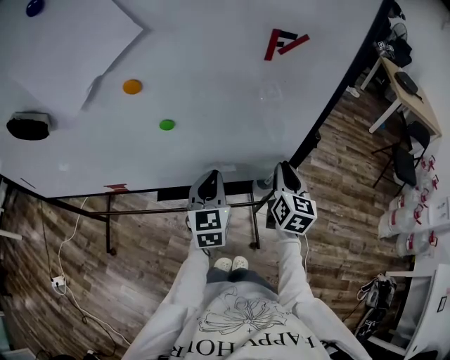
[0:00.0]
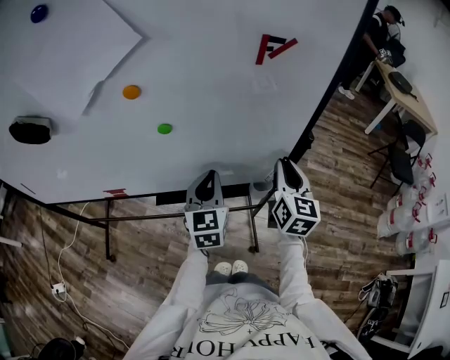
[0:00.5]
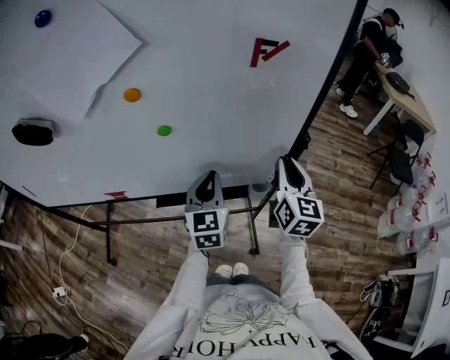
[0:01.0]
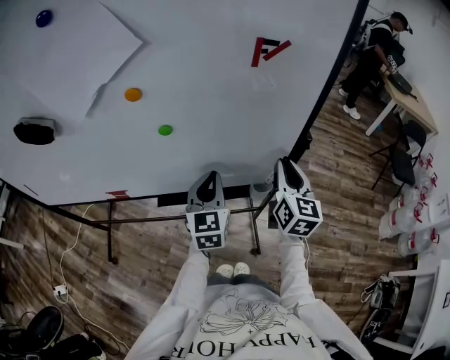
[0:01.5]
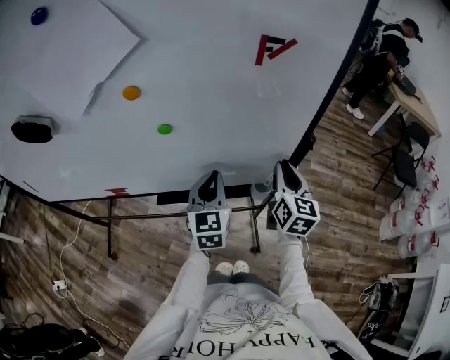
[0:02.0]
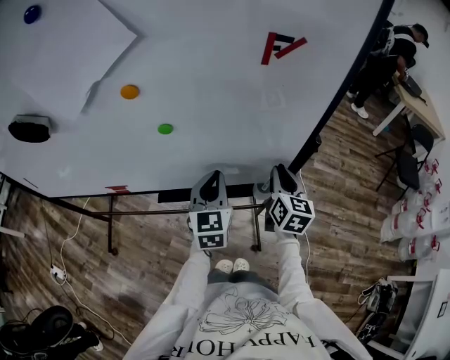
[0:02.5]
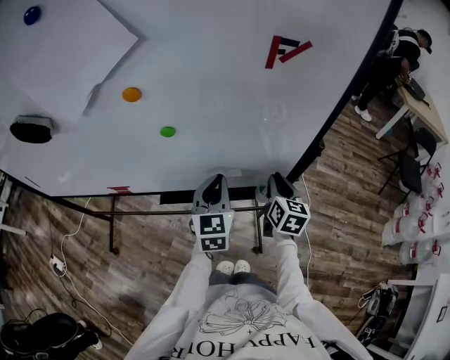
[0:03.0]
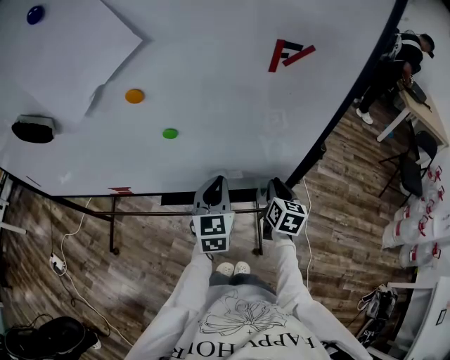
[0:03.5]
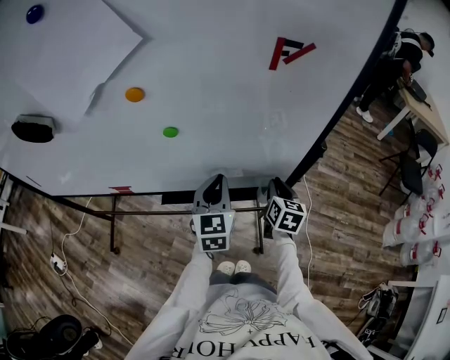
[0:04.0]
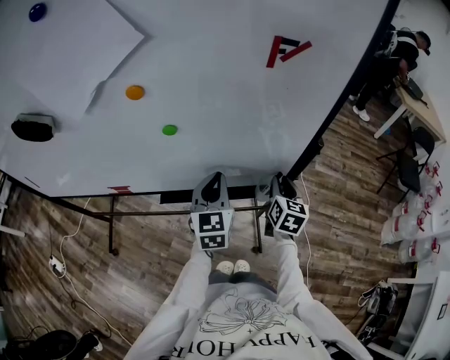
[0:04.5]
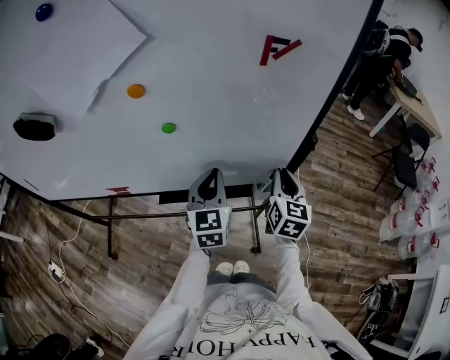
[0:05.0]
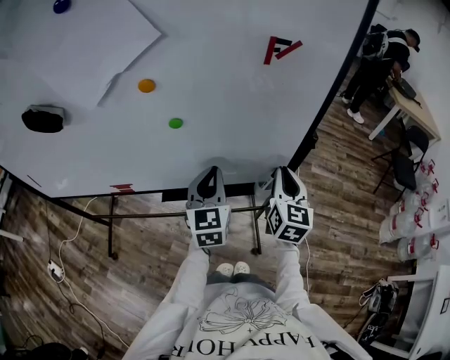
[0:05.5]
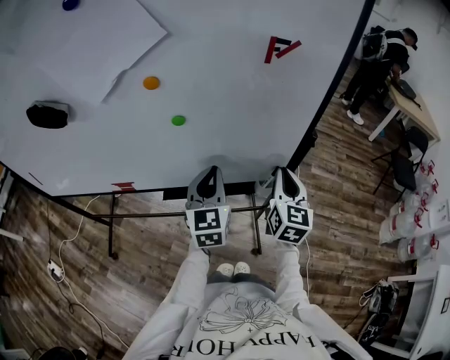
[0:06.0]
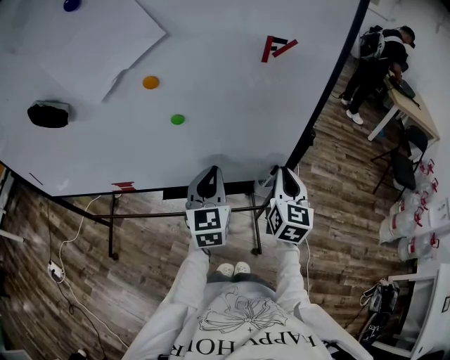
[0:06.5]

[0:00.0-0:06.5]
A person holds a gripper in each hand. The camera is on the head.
0:02.0 to 0:04.5: The right gripper travels downward by roughly 10 cm.
0:04.5 to 0:06.5: The right gripper moves upward and backward, some 15 cm. Meanwhile the left gripper shifts by roughly 5 cm.

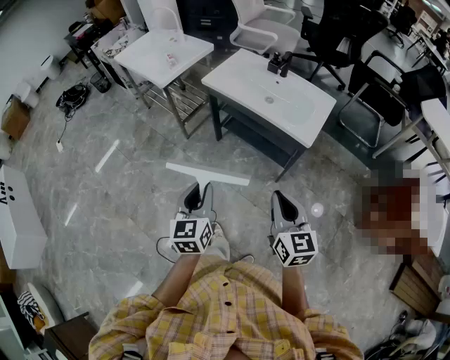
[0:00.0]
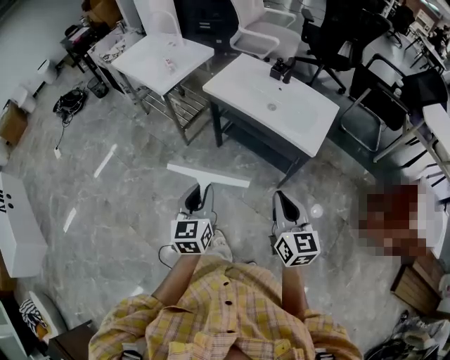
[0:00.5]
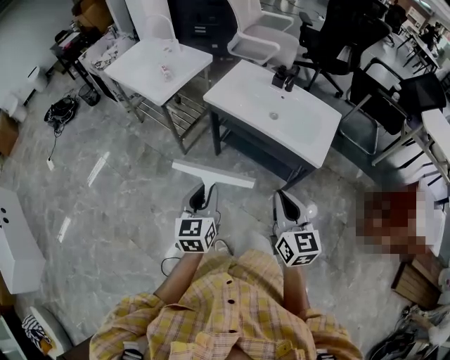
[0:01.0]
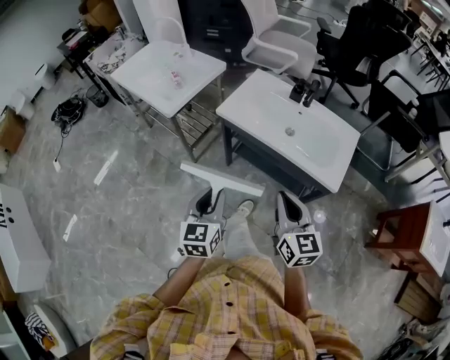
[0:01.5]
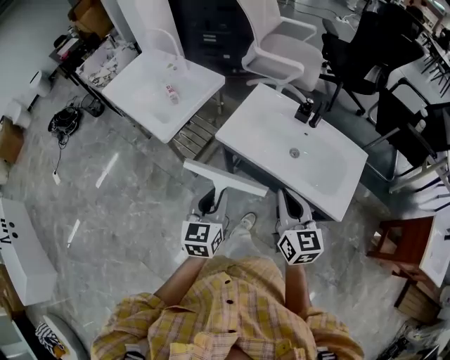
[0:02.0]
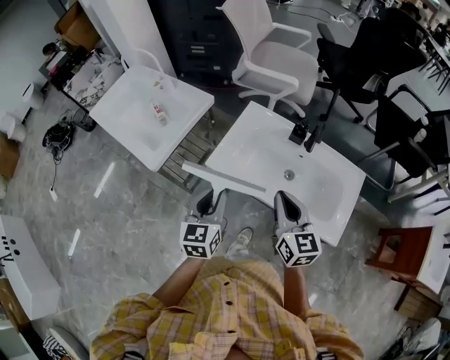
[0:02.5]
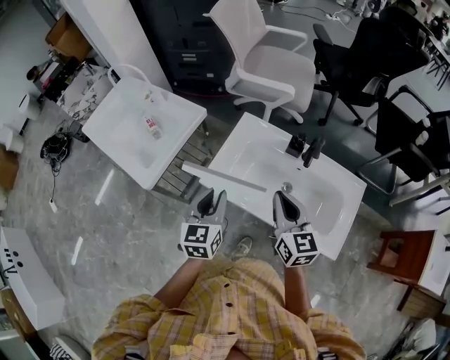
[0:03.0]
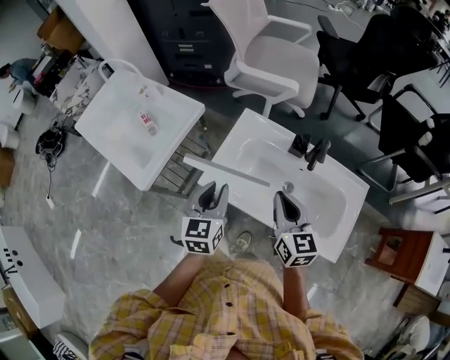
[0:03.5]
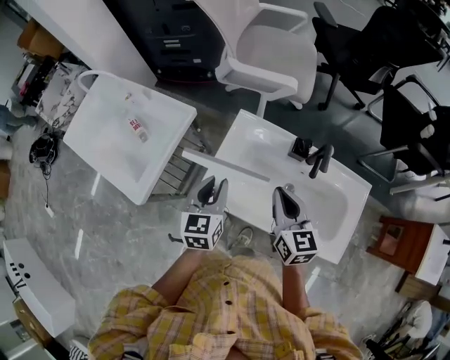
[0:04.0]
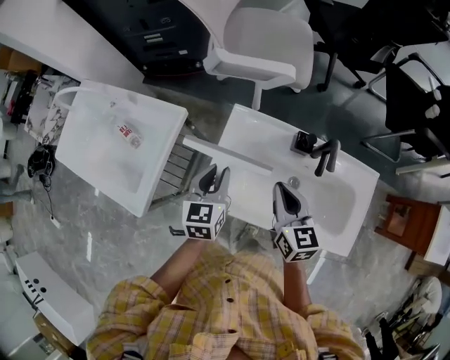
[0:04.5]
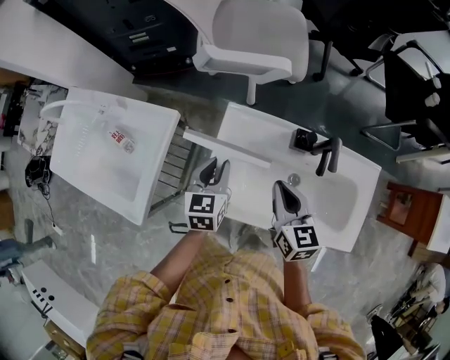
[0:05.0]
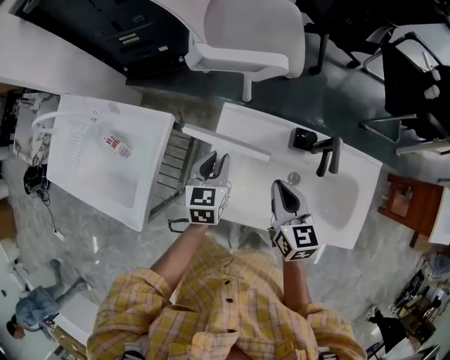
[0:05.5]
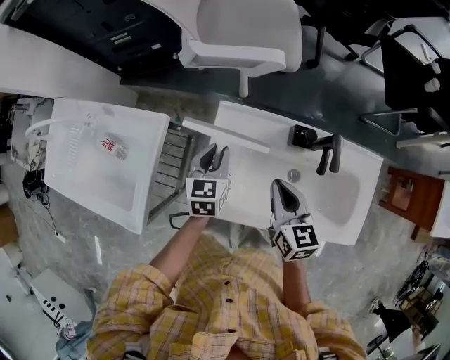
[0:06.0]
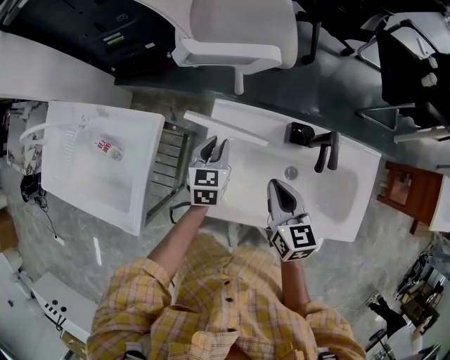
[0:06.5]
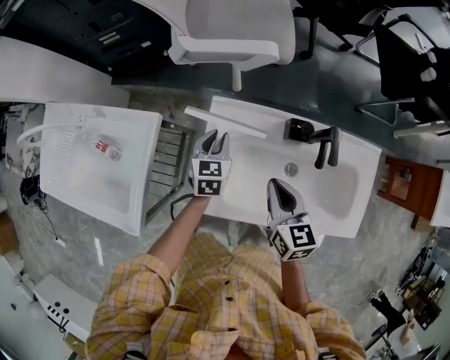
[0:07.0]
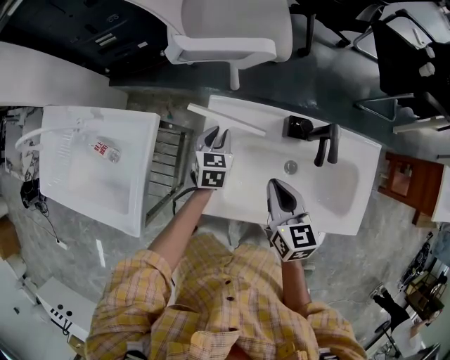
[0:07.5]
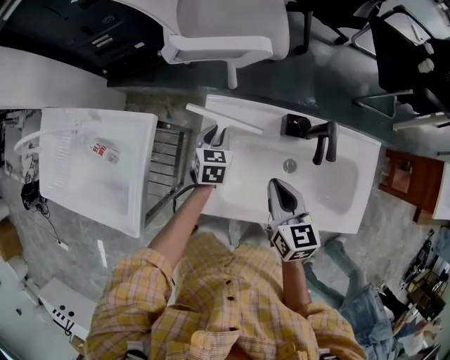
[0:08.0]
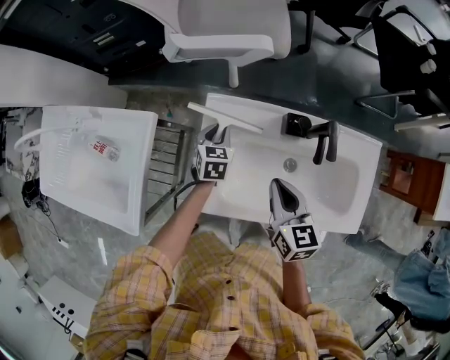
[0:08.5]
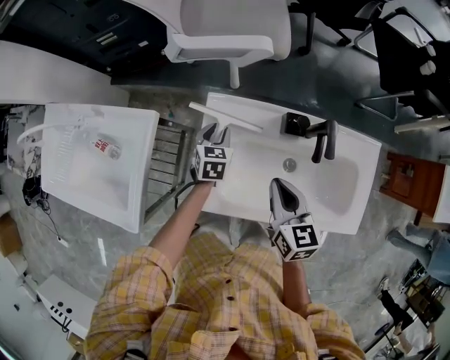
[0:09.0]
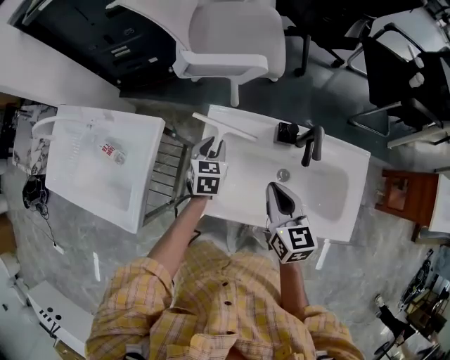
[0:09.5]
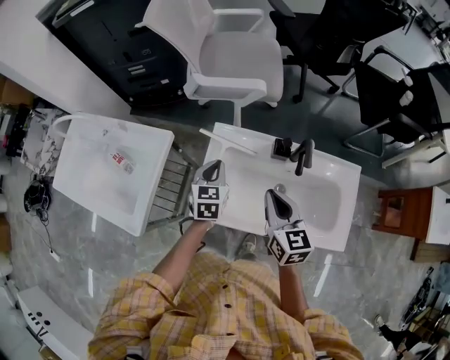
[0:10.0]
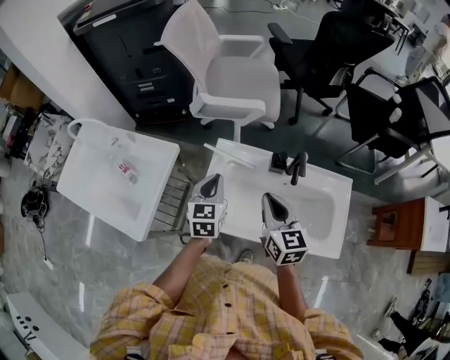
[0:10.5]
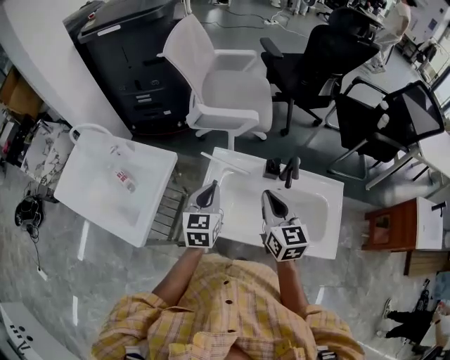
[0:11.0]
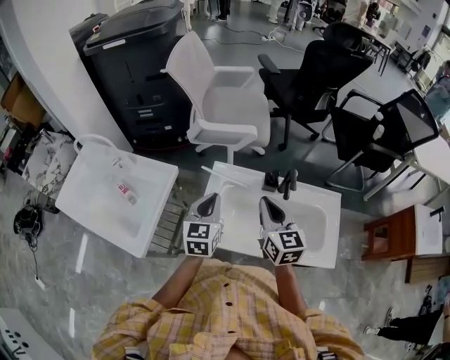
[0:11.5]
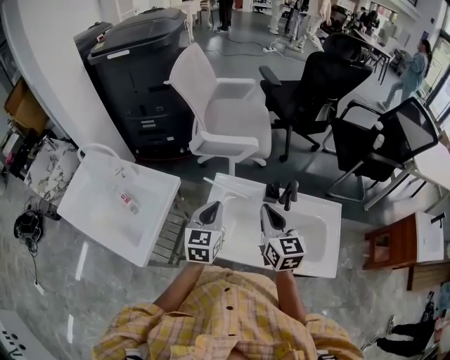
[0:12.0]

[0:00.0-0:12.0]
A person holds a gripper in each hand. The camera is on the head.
0:00.0 to 0:02.0: The grippers both shift forward by some 40 cm.
0:02.0 to 0:04.0: Both grippers travel together forward, roughly 30 cm.
0:04.0 to 0:06.0: The right gripper moves downward and forward, approximately 10 cm. The left gripper is displaced forward and downward by some 20 cm.
0:06.0 to 0:08.0: The left gripper goes about 10 cm downward.
0:08.0 to 0:10.0: The right gripper shifts some 10 cm upward. The left gripper shifts roughly 15 cm upward and backward.
0:10.0 to 0:12.0: The left gripper is displaced upward and backward by roughly 15 cm; the right gripper goes roughly 10 cm upward.

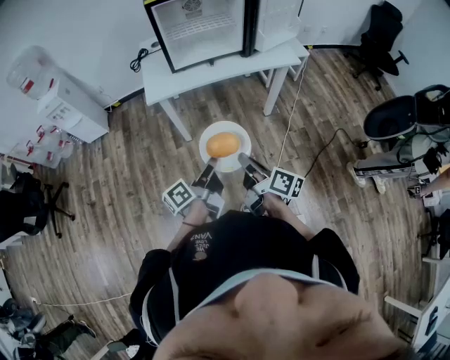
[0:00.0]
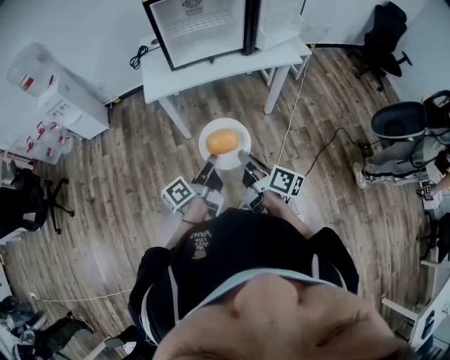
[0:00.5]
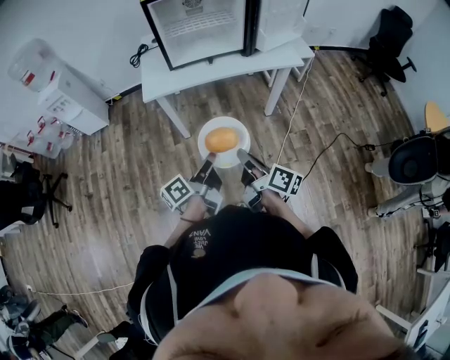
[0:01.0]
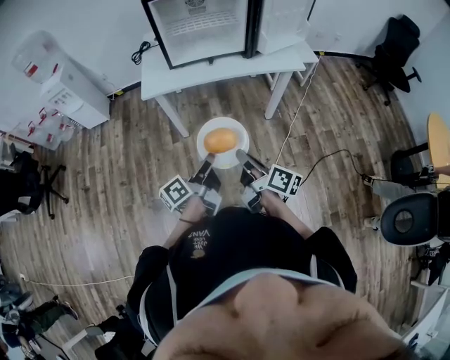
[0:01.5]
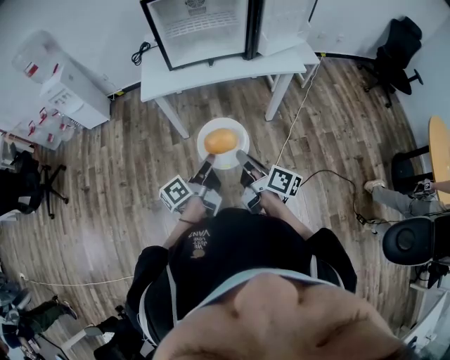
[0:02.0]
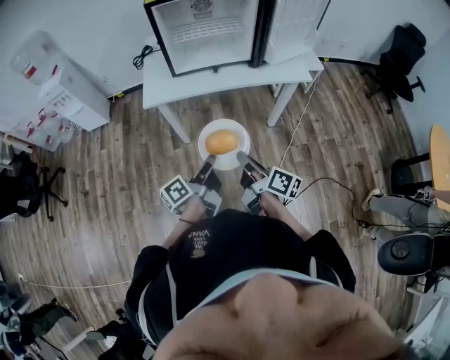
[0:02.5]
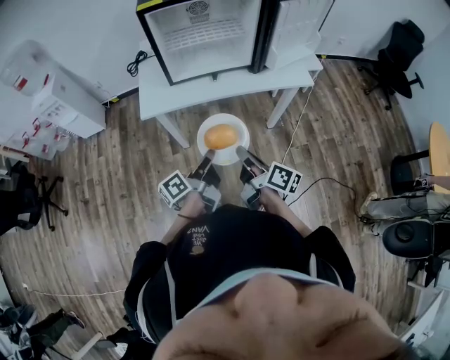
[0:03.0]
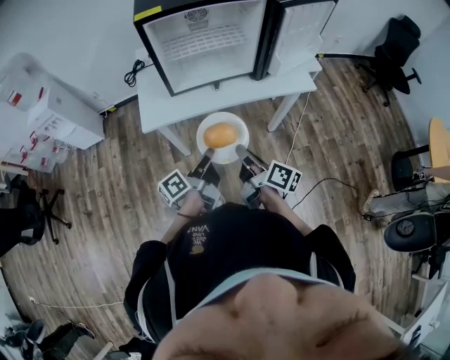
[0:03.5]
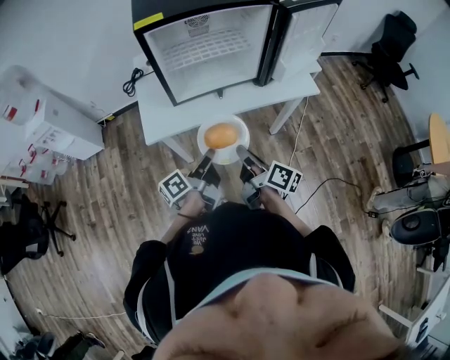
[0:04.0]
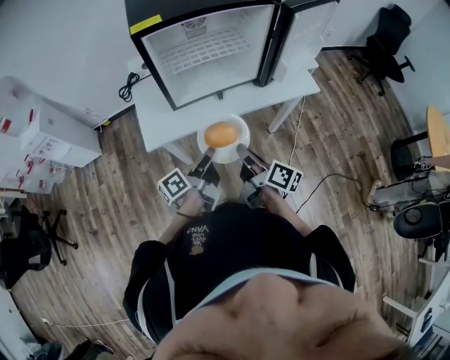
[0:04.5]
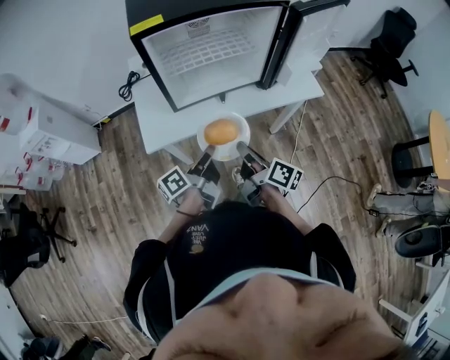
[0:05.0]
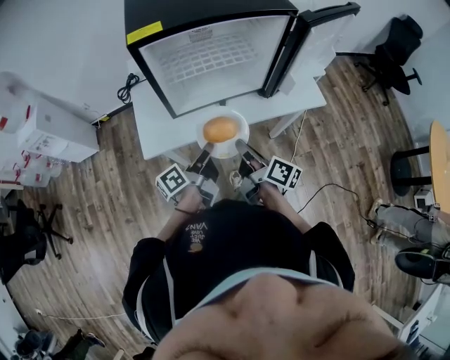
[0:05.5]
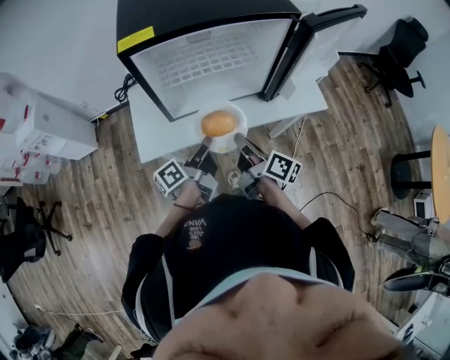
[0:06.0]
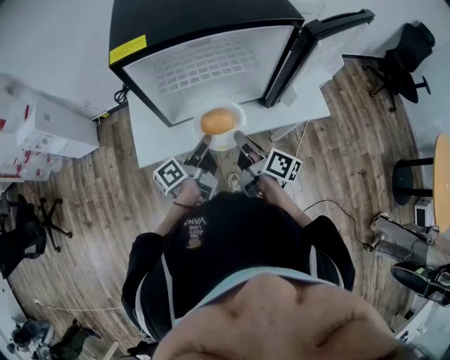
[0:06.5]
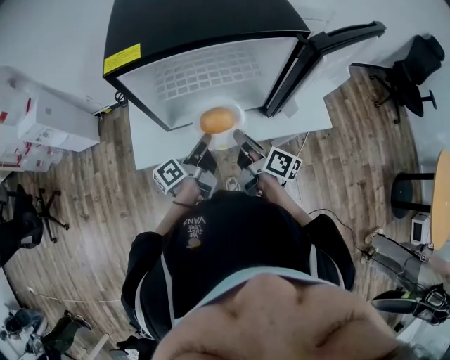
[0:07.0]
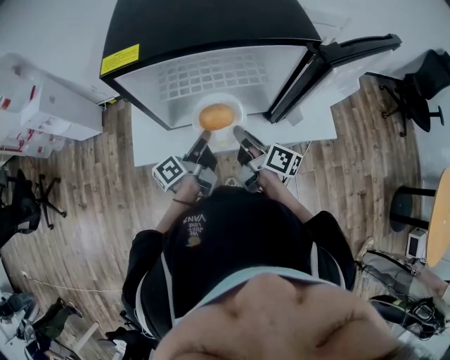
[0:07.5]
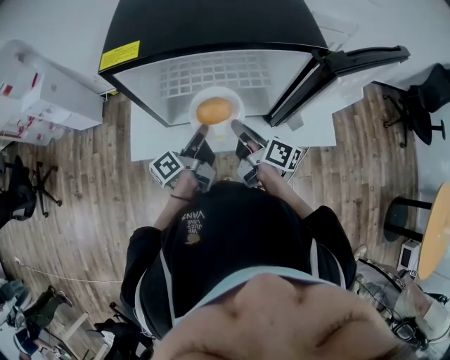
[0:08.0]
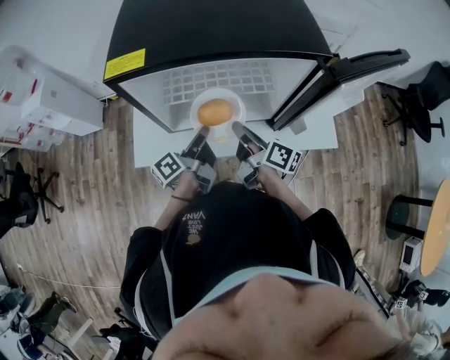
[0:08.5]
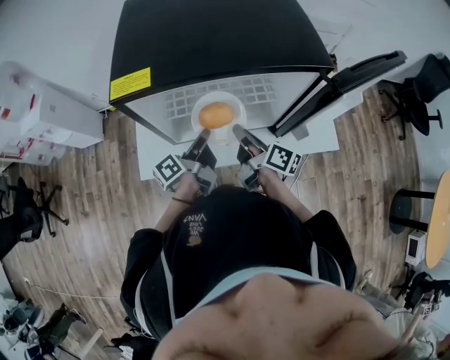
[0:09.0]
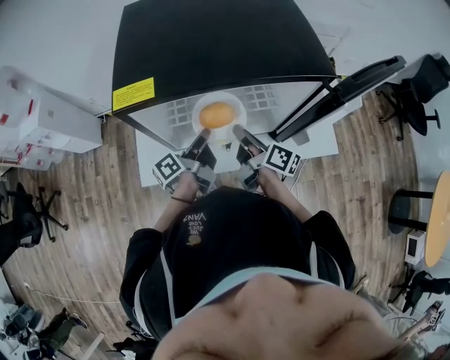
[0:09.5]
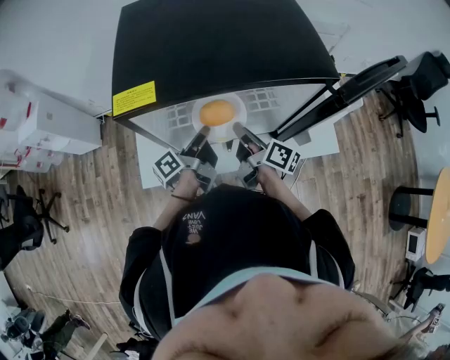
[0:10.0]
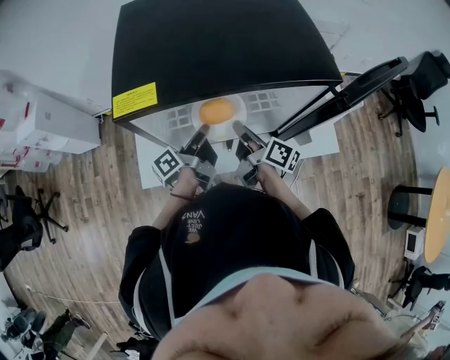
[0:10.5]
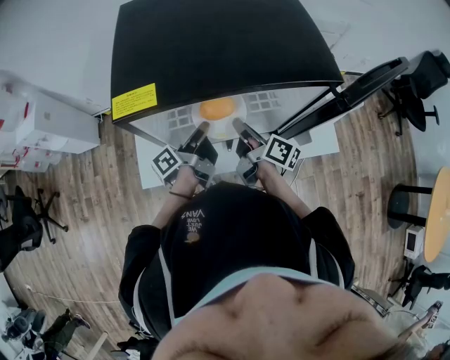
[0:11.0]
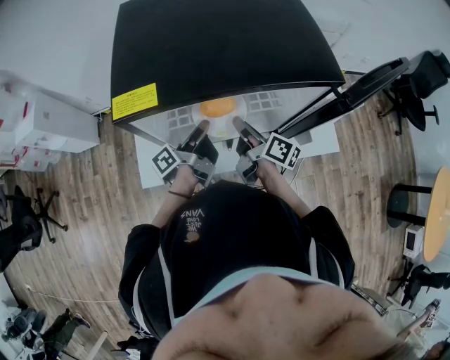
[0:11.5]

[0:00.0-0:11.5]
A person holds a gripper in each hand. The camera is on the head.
0:00.0 to 0:02.0: Both grippers move to the right, approximately 5 cm.
0:02.0 to 0:04.0: Both grippers travel together forward, approximately 25 cm.
0:04.0 to 0:06.0: The two grippers go roughly 15 cm forward.
0:06.0 to 0:07.5: Both grippers move forward, about 10 cm.
0:07.5 to 0:09.5: Both grippers travel together forward, roughly 10 cm.
0:09.5 to 0:11.5: The grippers stay close to where they were, moving slightly.
